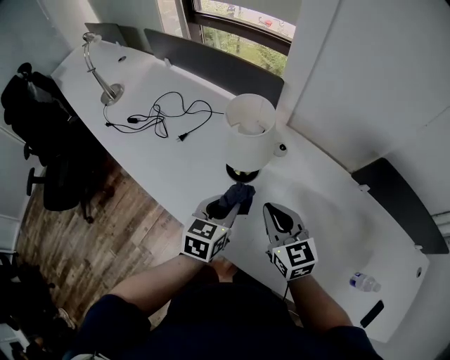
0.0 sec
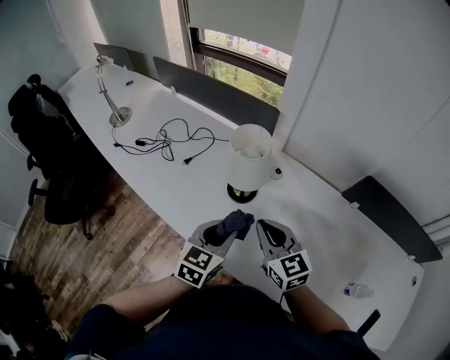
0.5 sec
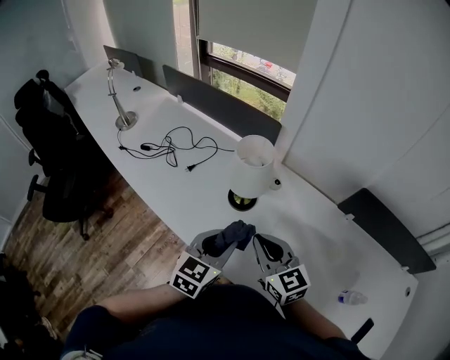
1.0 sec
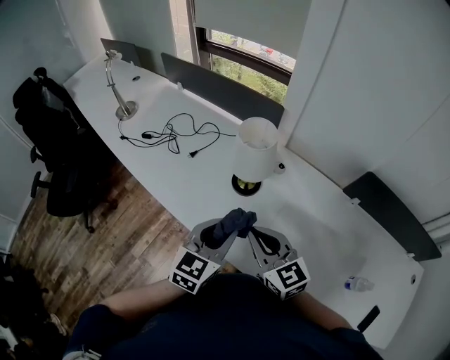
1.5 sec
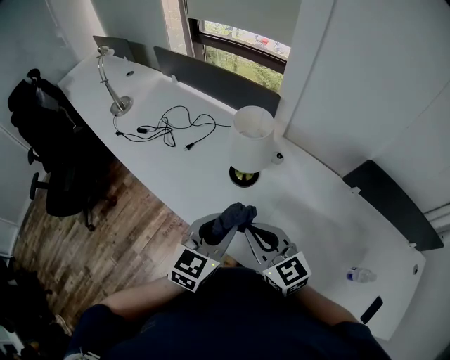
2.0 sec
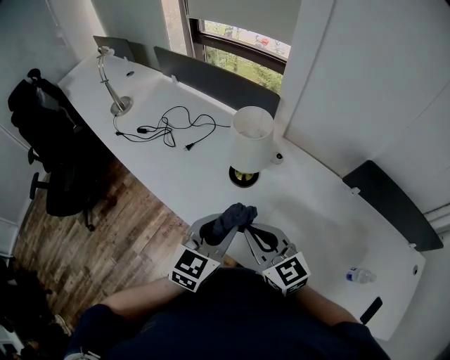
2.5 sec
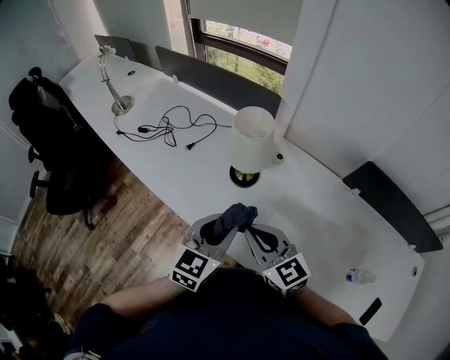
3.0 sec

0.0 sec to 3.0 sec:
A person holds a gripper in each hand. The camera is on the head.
0.0 sec to 1.5 sec: The right gripper heads backward, upward and to the left, covering about 15 cm, while the left gripper is displaced upward and backward by about 15 cm.
1.5 sec to 3.0 sec: The grippers make only small movements.

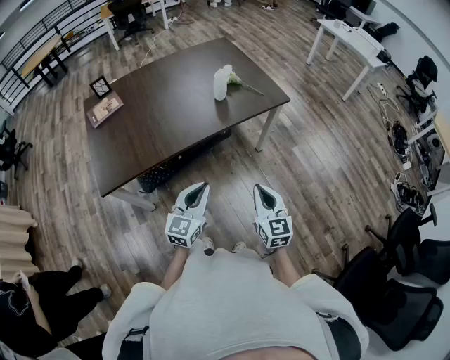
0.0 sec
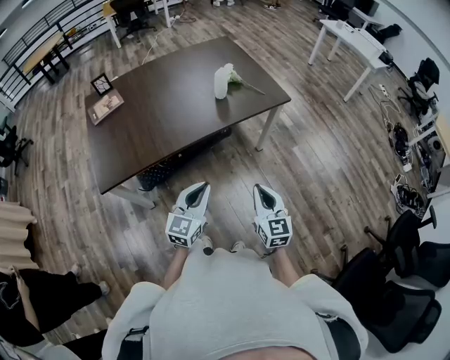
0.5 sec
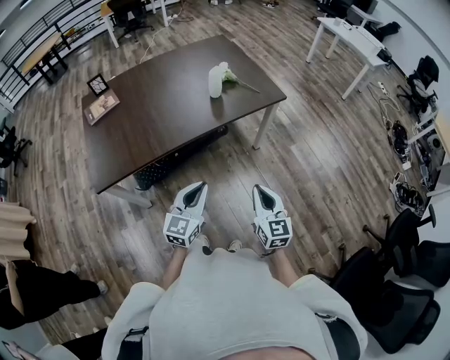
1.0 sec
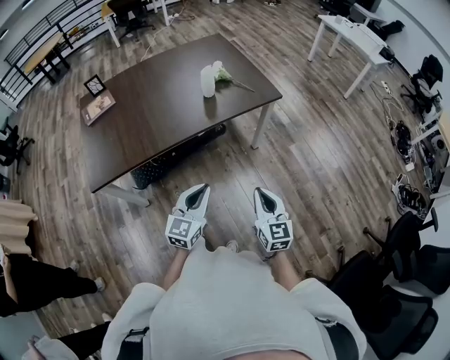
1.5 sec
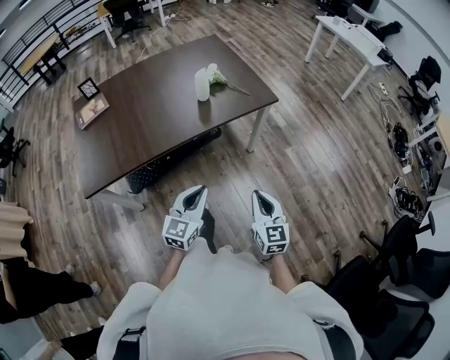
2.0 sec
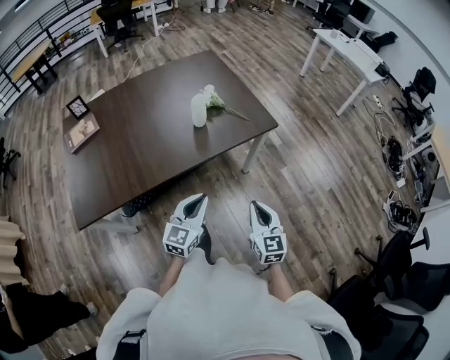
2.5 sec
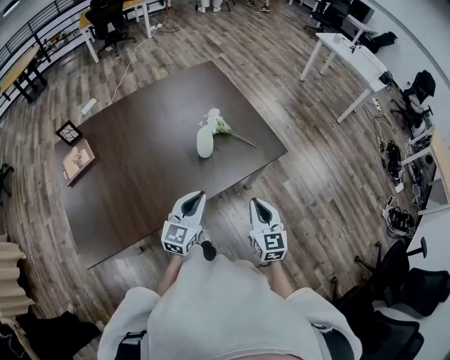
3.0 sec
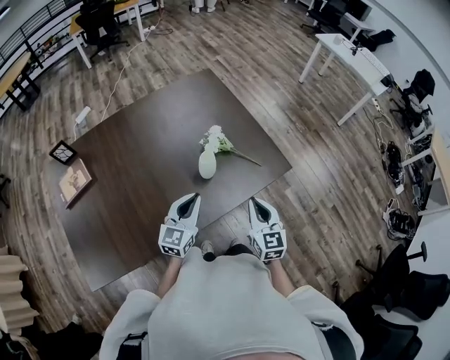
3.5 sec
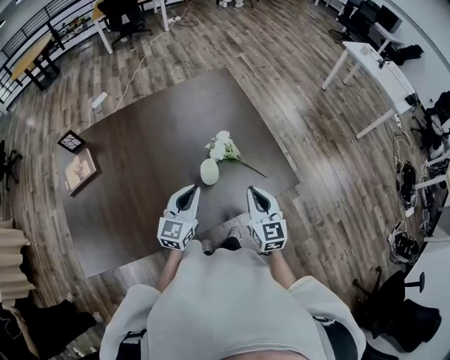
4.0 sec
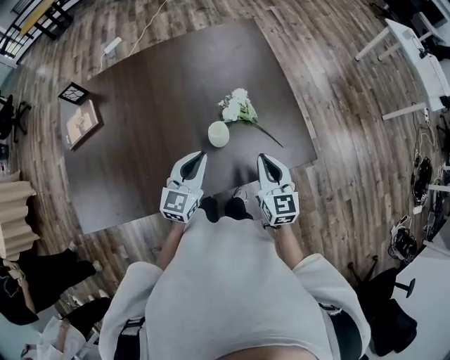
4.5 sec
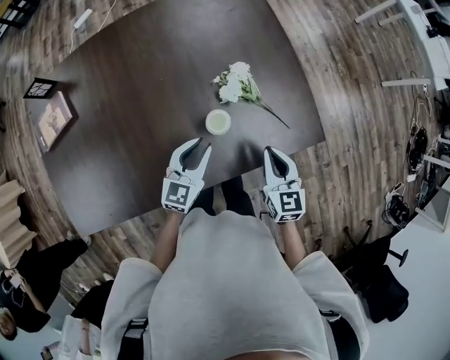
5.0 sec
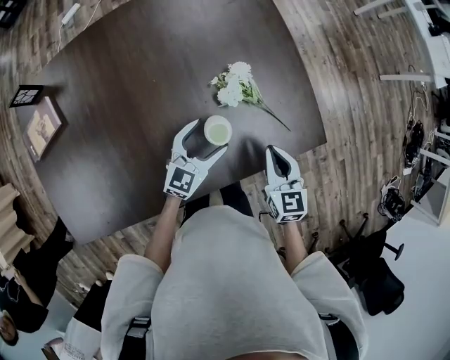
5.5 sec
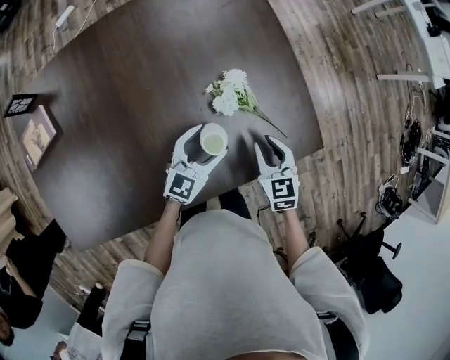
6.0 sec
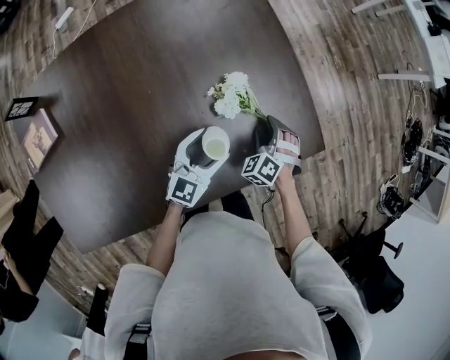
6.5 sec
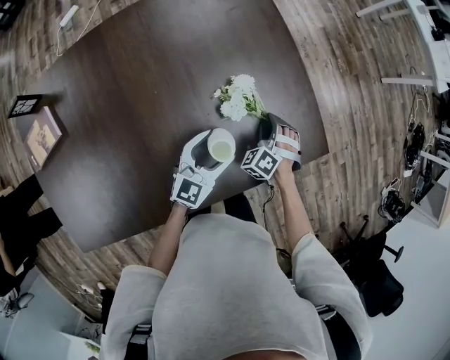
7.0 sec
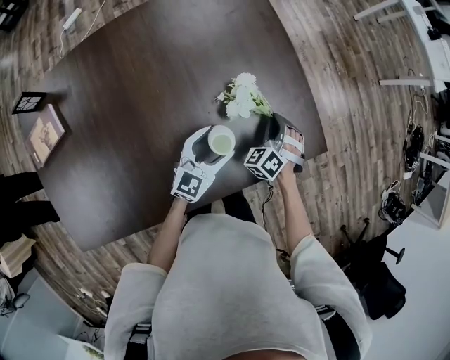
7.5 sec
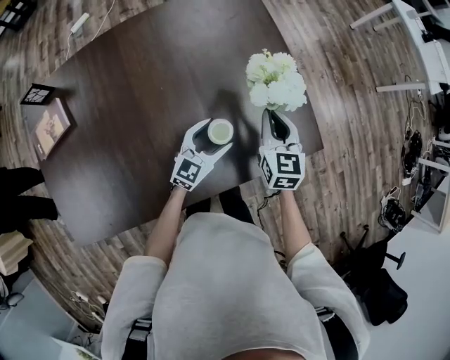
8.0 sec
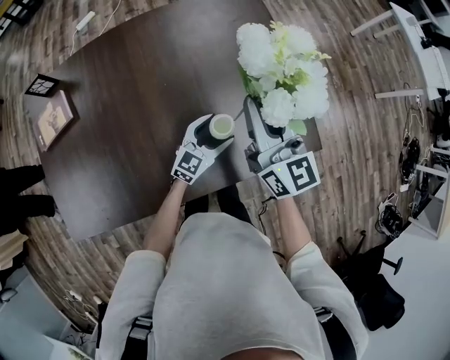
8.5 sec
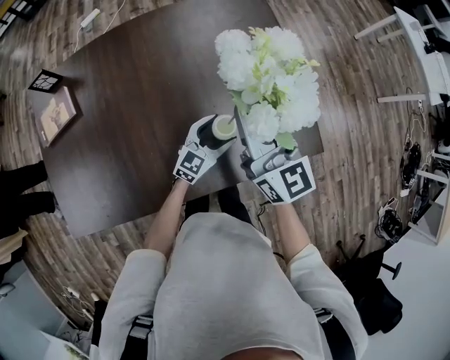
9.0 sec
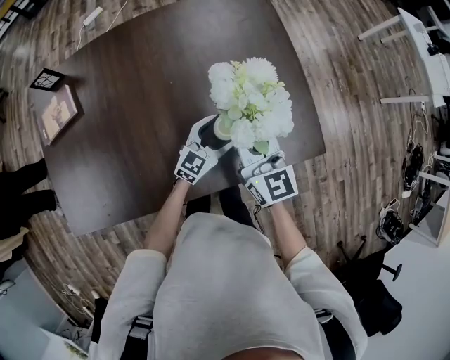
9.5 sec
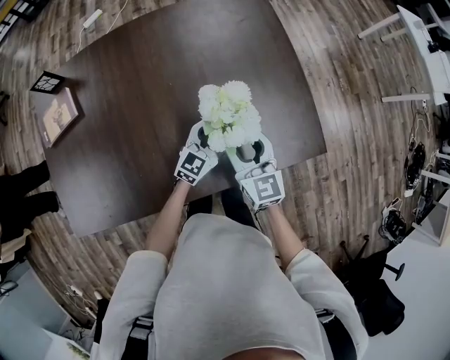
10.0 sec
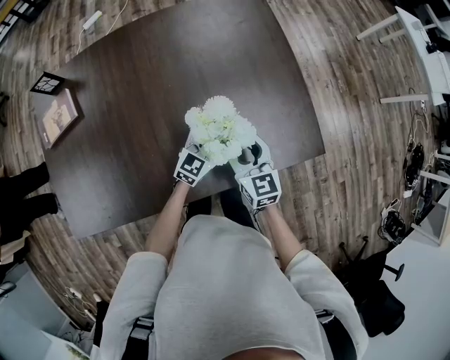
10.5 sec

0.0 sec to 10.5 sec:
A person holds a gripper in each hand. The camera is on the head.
0.0 sec to 2.0 sec: The grippers both shift to the right by roughly 10 cm.
2.0 sec to 4.0 sec: The two grippers travel together, forward, about 50 cm.
4.0 sec to 6.5 sec: Both grippers move downward, roughly 20 cm. The left gripper opens up, while the right gripper angles its fingers downward, by about 40 degrees, and opens.
6.5 sec to 8.5 sec: The right gripper goes some 30 cm upward, tilts its fingers some 50 degrees upward, and closes its fingers.
8.5 sec to 10.5 sec: The right gripper is displaced downward by some 20 cm, swivels about 20 degrees, and opens its fingers.

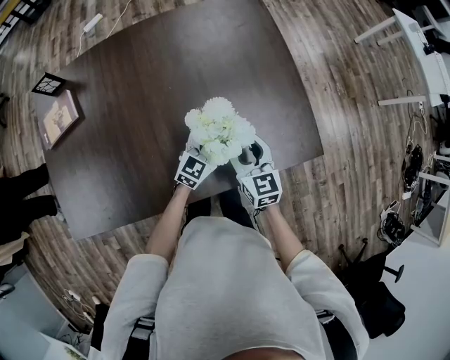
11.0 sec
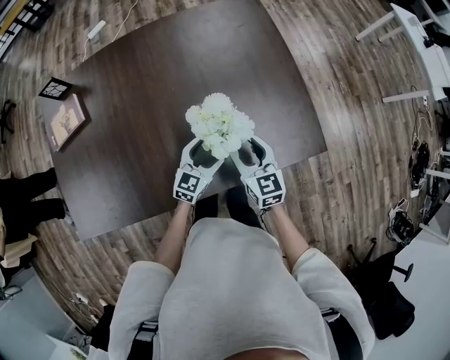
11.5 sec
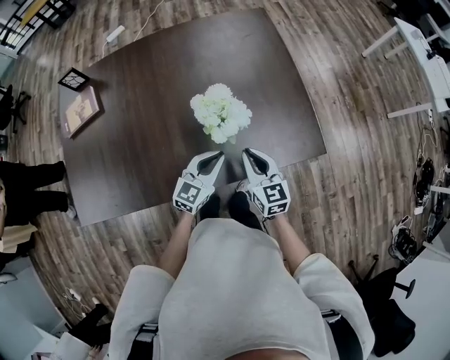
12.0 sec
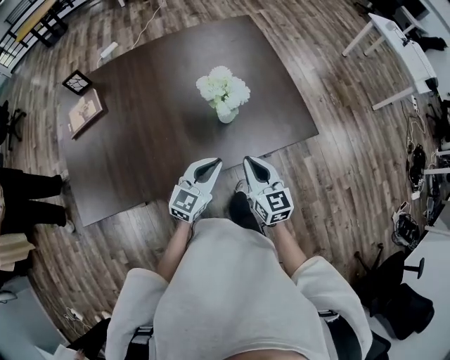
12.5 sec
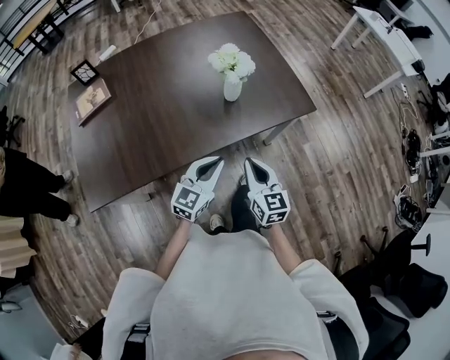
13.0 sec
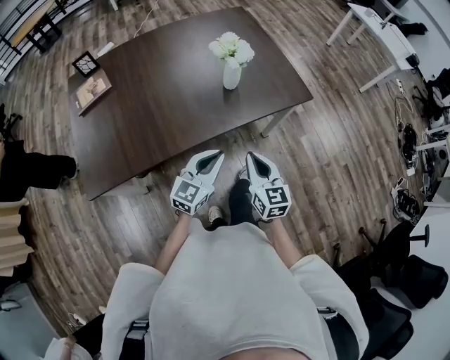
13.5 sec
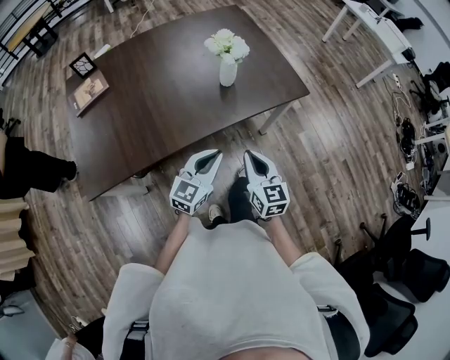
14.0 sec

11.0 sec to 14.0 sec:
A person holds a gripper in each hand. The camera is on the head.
11.0 sec to 12.5 sec: The right gripper moves backward, approximately 20 cm, and closes up, while the left gripper heads backward and upward, covering about 25 cm, and closes its fingers.
12.5 sec to 14.0 sec: The two grippers go roughly 20 cm backward.

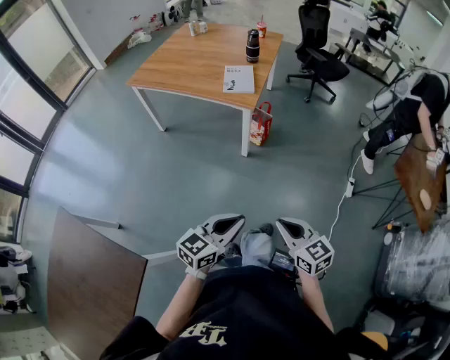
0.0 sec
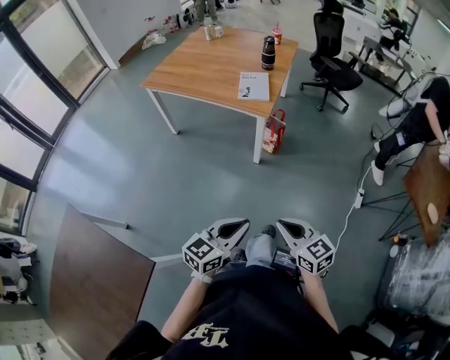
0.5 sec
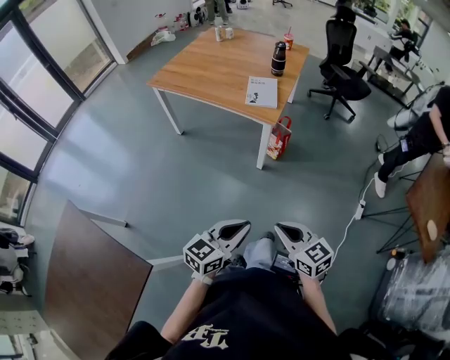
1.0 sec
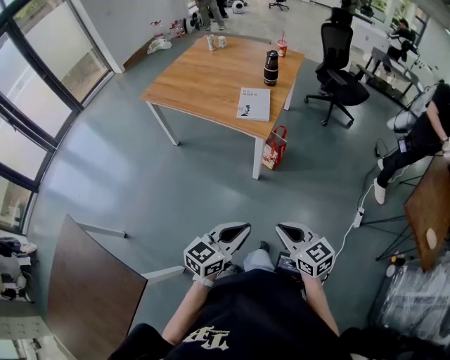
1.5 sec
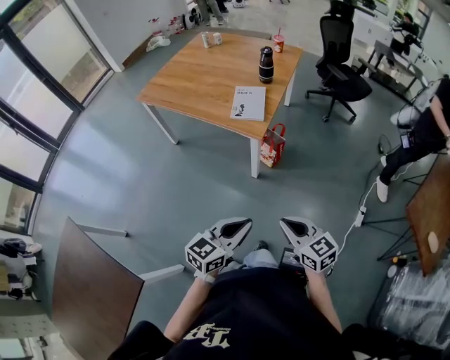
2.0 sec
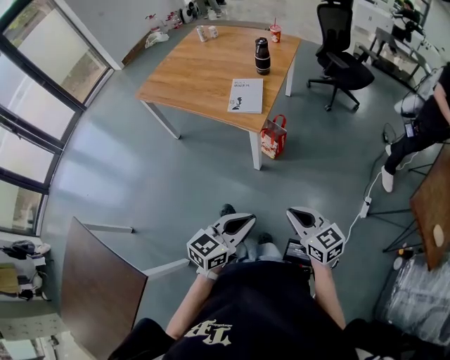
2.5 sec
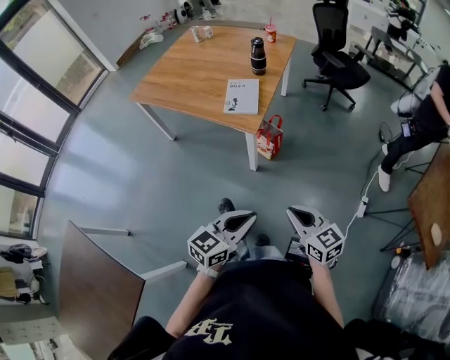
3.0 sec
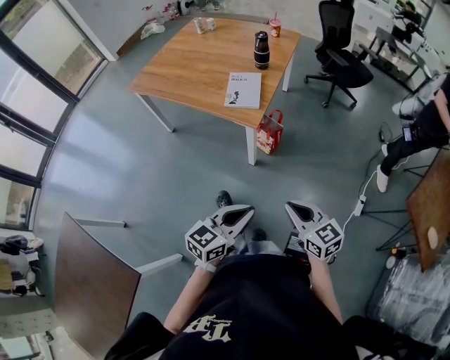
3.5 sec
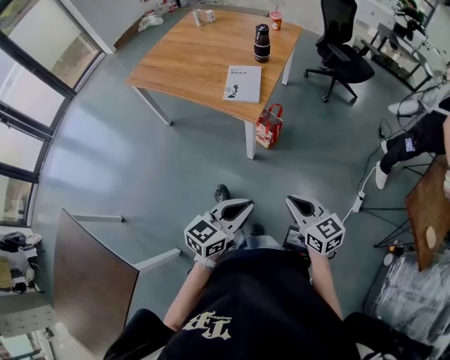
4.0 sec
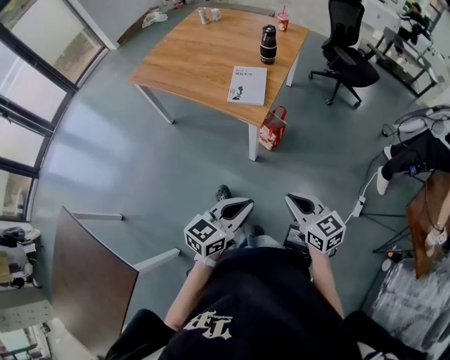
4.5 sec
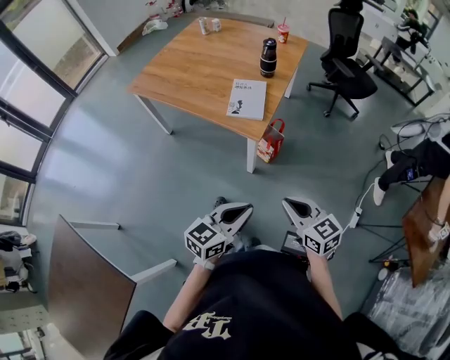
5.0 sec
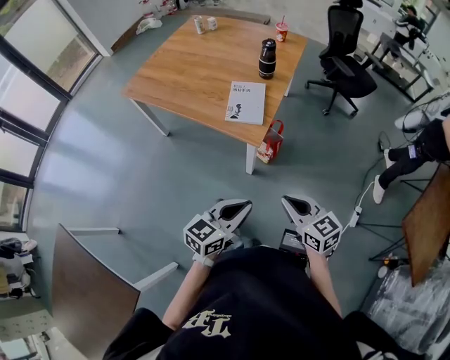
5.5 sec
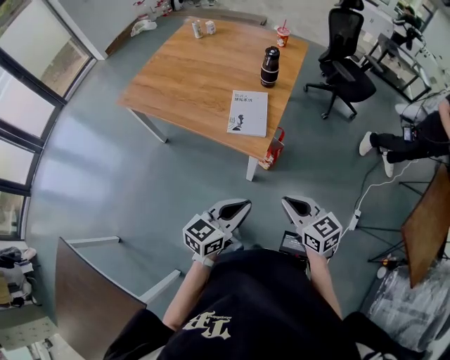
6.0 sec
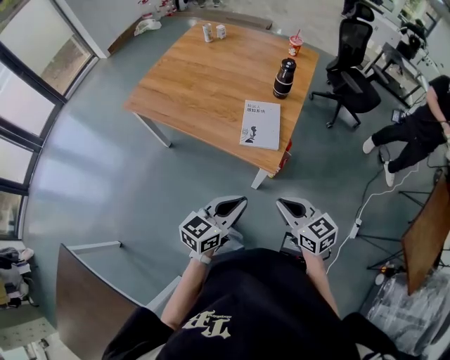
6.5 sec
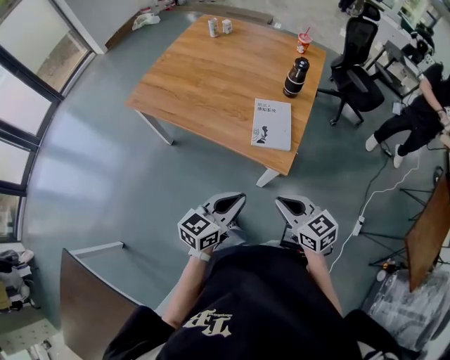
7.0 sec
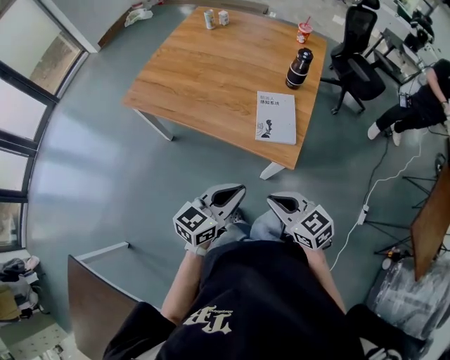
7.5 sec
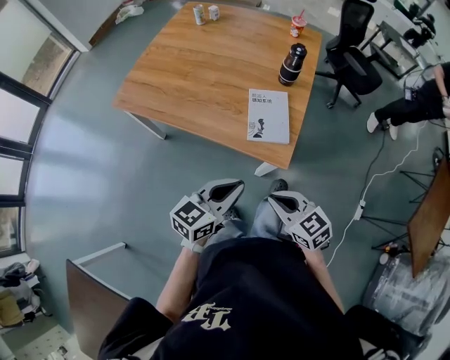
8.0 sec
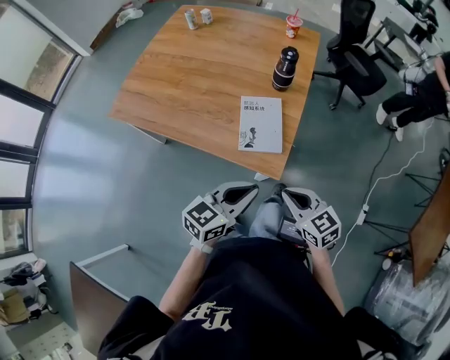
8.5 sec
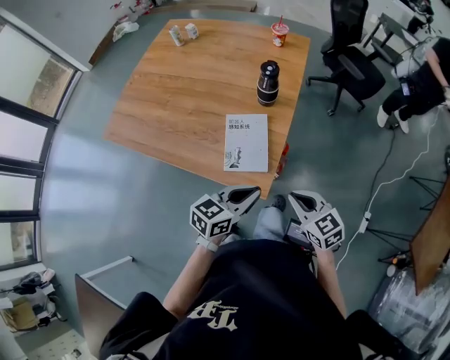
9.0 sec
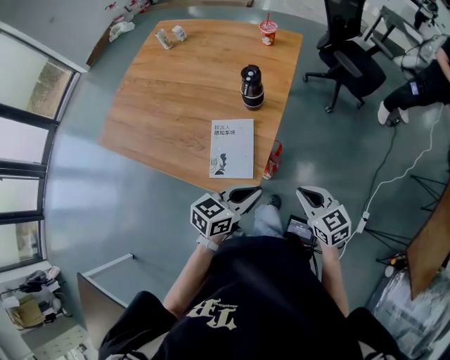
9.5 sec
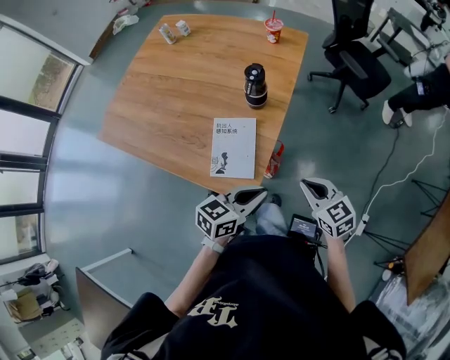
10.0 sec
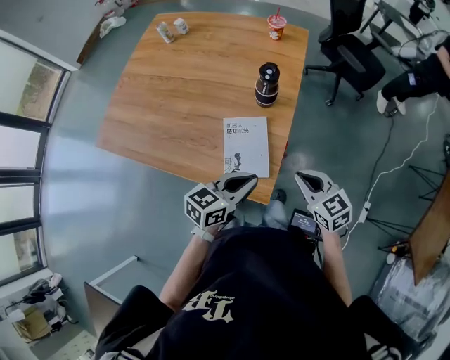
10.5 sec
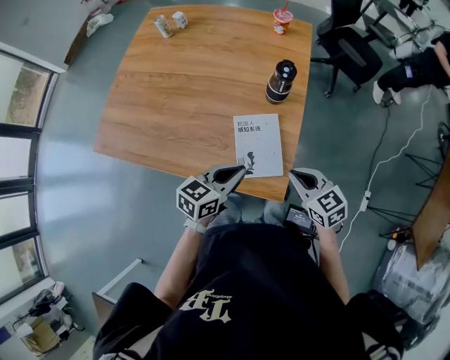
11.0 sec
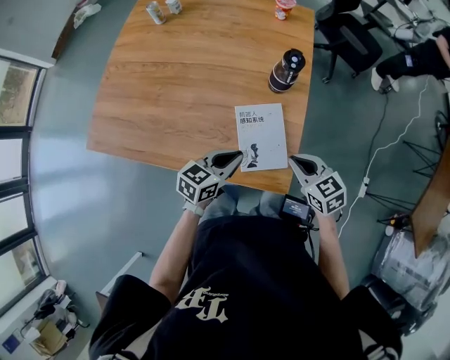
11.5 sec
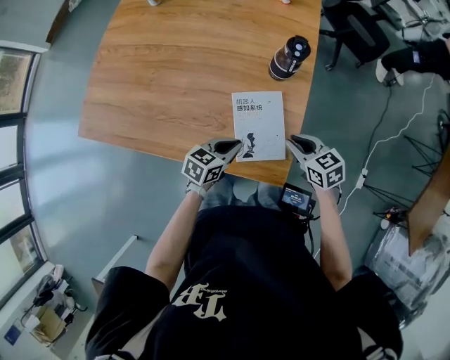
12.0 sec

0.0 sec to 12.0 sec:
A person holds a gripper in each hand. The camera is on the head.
0.0 sec to 2.0 sec: The two grippers go roughly 20 cm forward.
2.0 sec to 4.0 sec: The left gripper changes place by about 5 cm; the right gripper is displaced forward by some 5 cm.
4.0 sec to 6.0 sec: The two grippers go approximately 20 cm forward.
6.0 sec to 8.0 sec: The left gripper moves forward and to the left, roughly 20 cm; the right gripper moves to the left and forward, some 20 cm.
8.0 sec to 10.0 sec: The two grippers go some 35 cm to the right and forward.
10.0 sec to 12.0 sec: Both grippers travel together to the left and downward, approximately 25 cm.
